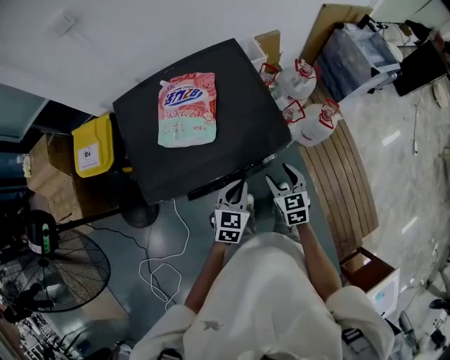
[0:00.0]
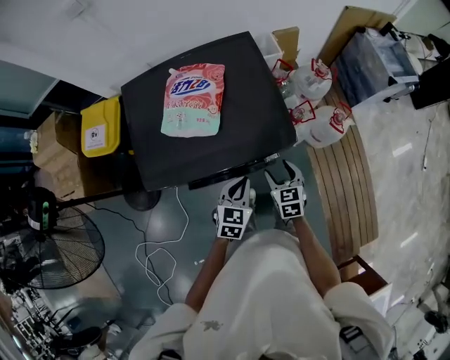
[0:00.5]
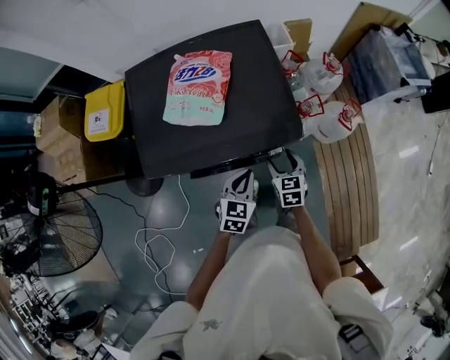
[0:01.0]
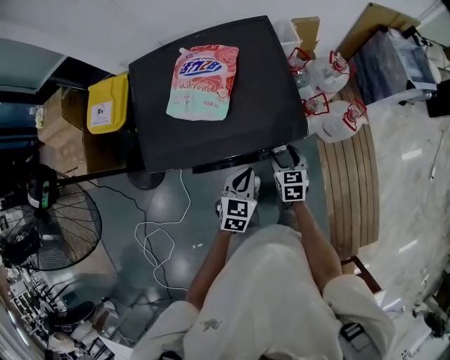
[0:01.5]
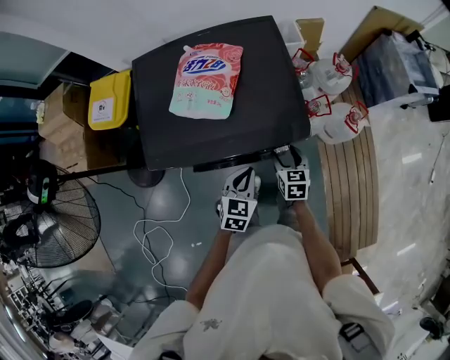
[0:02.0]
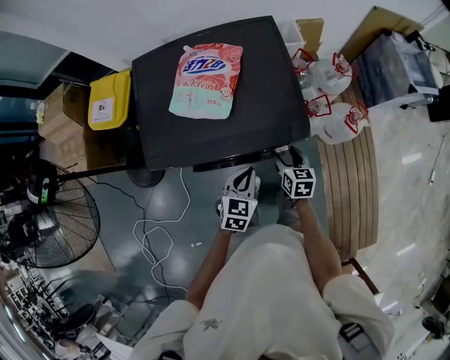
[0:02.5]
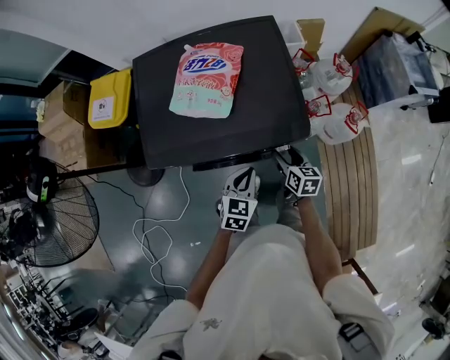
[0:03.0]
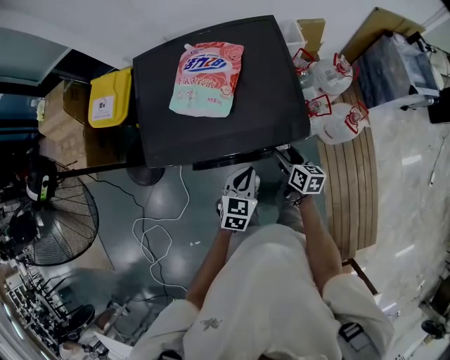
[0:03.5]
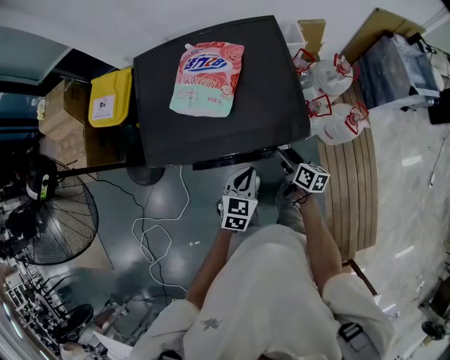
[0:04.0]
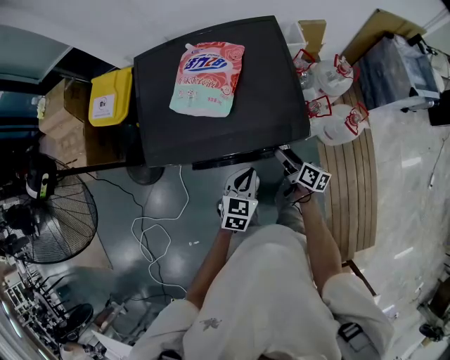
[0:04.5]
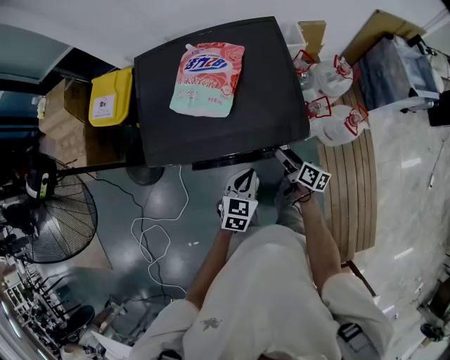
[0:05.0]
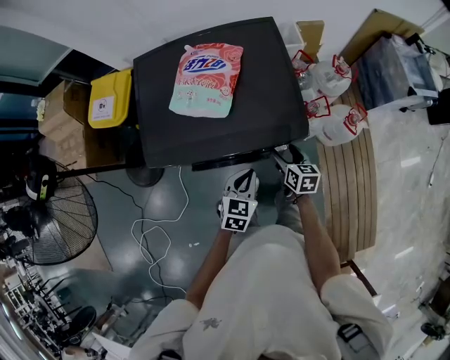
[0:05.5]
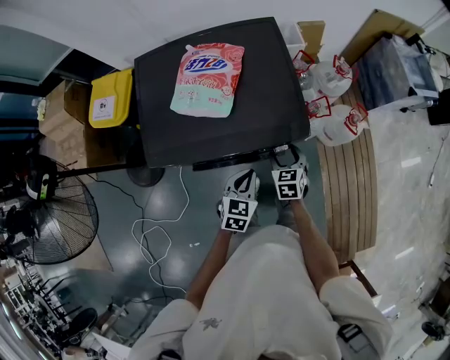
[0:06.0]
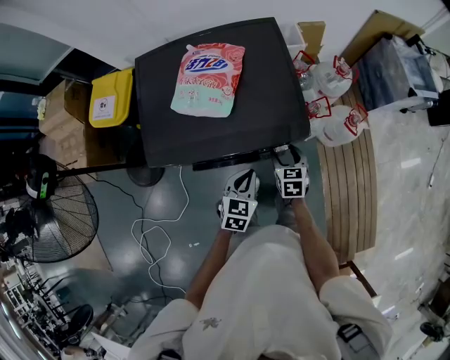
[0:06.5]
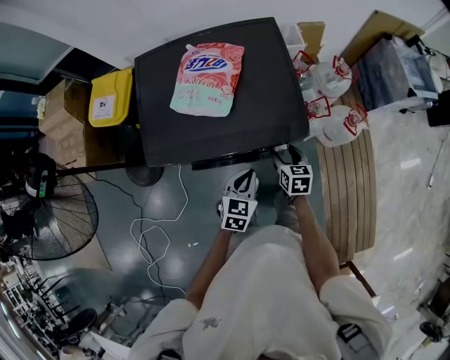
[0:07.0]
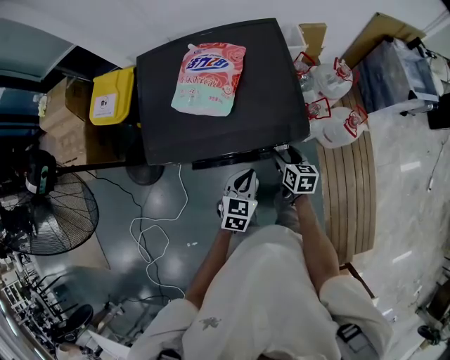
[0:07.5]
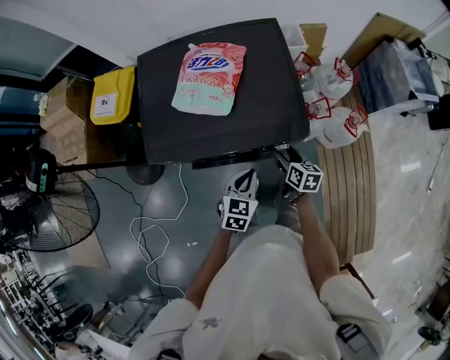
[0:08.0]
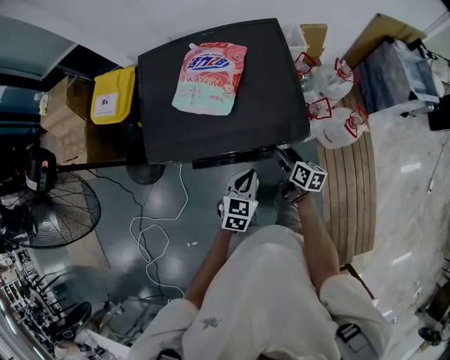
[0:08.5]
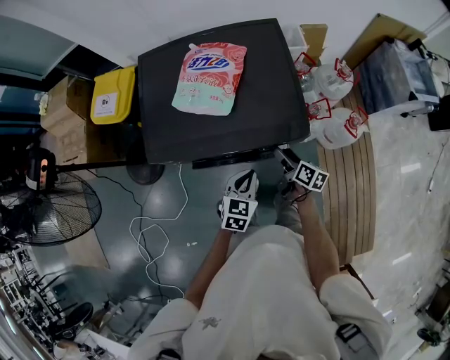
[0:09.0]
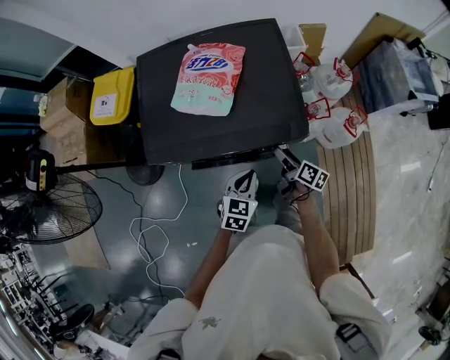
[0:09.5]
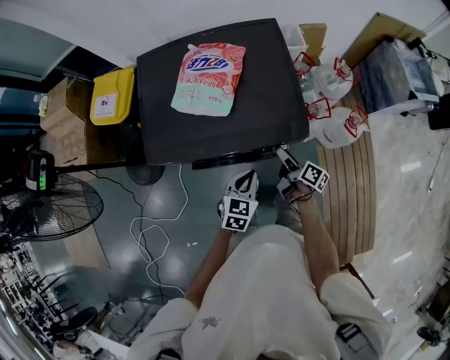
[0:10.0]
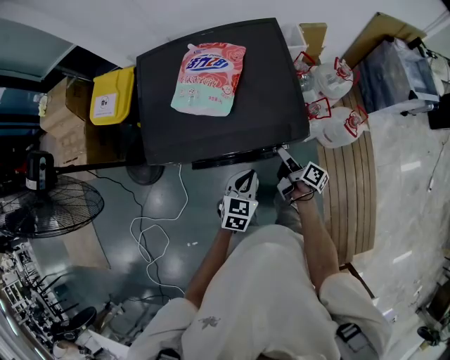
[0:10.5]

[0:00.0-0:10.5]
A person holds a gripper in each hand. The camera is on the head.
0:00.0 to 0:02.0: The right gripper shifts roughly 10 cm downward.
0:02.0 to 0:04.0: The right gripper swivels approximately 40 degrees.
0:04.0 to 0:06.5: The right gripper turns by approximately 40 degrees.
0:06.5 to 0:08.5: The right gripper changes its angle by roughly 40 degrees.
0:08.5 to 0:10.5: The right gripper rotates some 30 degrees.

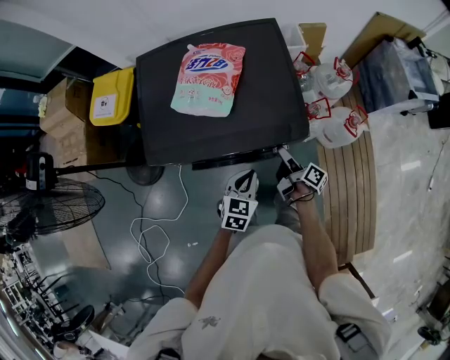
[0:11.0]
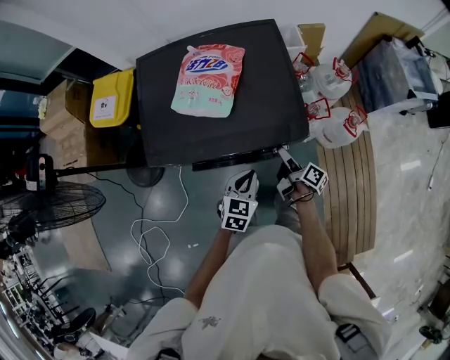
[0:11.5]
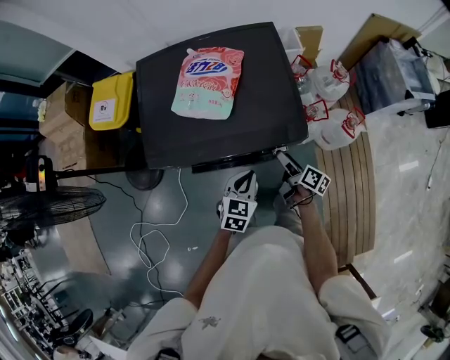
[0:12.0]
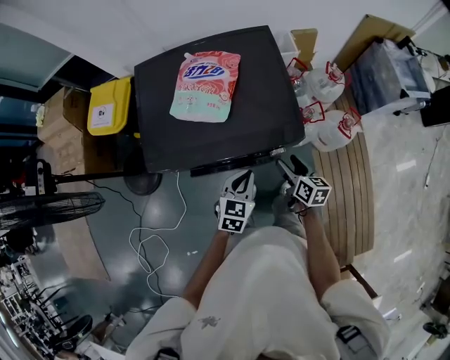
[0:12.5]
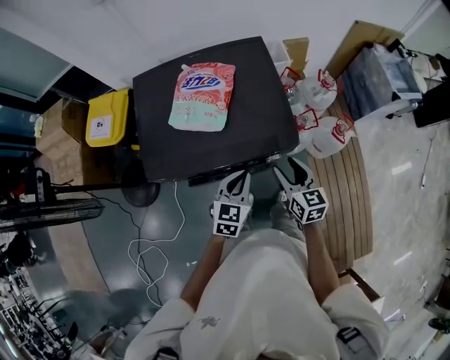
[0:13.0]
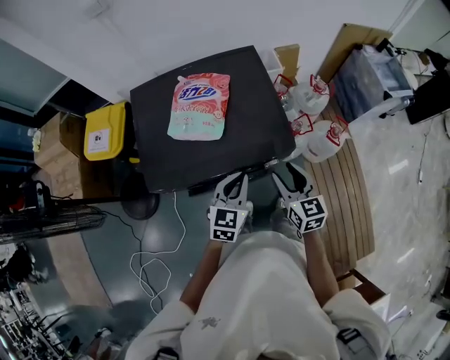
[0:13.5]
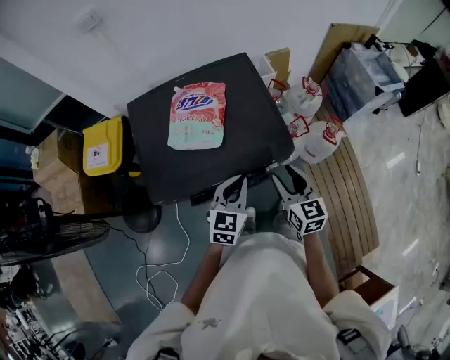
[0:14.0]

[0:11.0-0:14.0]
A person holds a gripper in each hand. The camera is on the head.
0:11.0 to 0:12.5: The right gripper moves roughly 5 cm, and rolls counterclockwise, seen from behind, by some 50 degrees.
0:12.5 to 0:14.0: The right gripper travels upward by about 15 cm, and turns by approximately 30 degrees. Meanwhile the left gripper moves upward, some 10 cm.

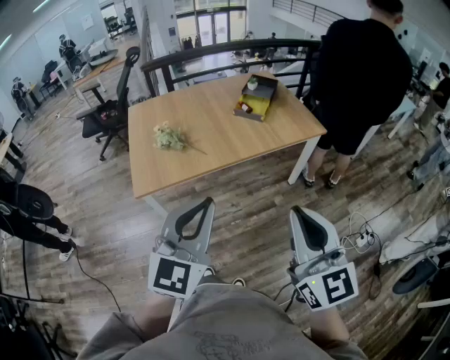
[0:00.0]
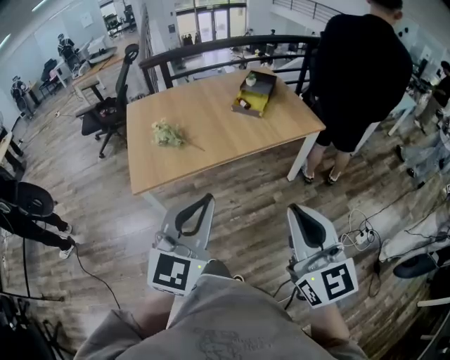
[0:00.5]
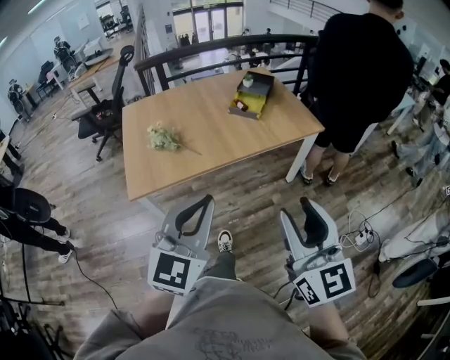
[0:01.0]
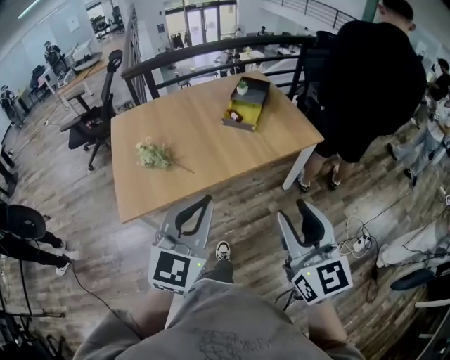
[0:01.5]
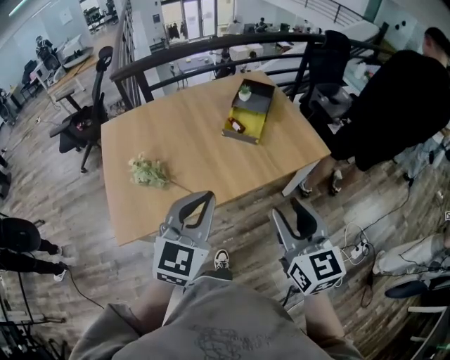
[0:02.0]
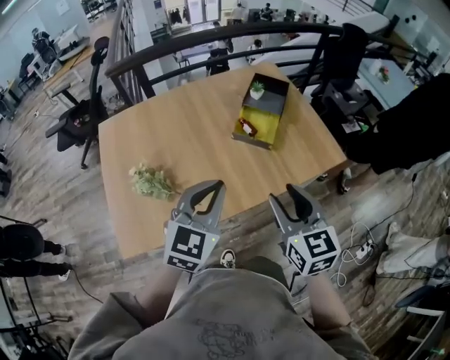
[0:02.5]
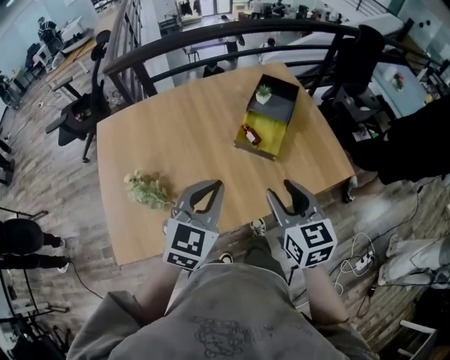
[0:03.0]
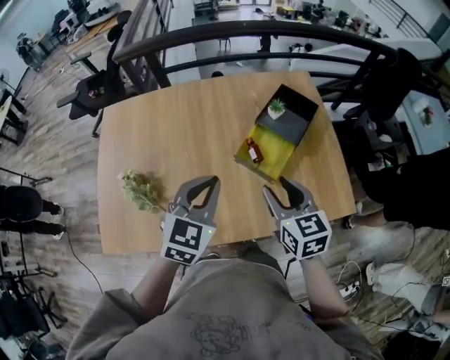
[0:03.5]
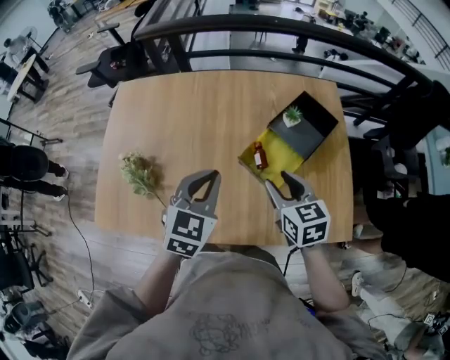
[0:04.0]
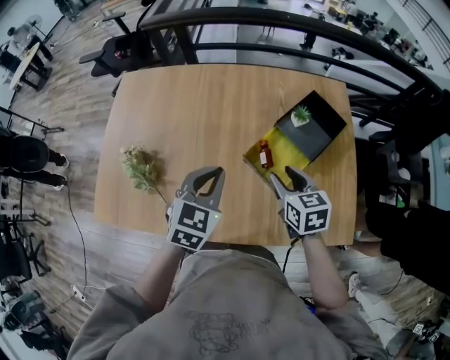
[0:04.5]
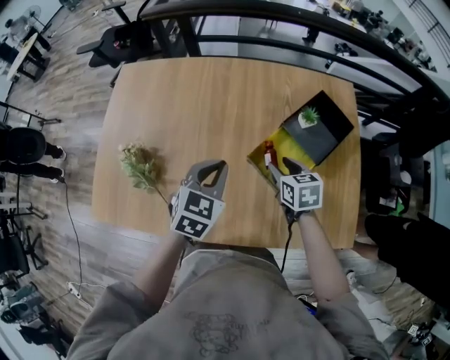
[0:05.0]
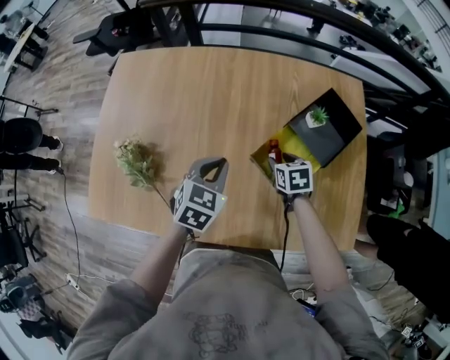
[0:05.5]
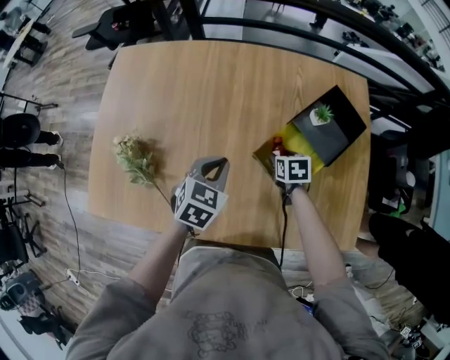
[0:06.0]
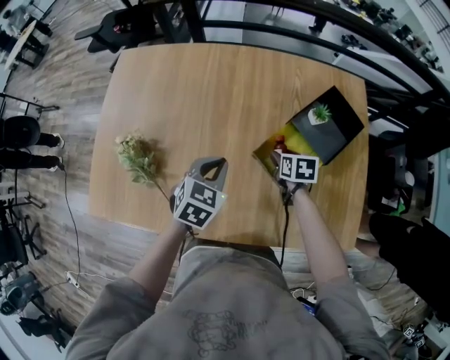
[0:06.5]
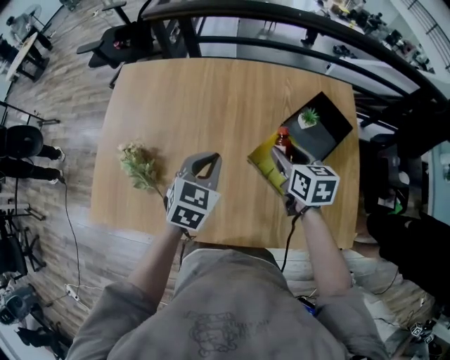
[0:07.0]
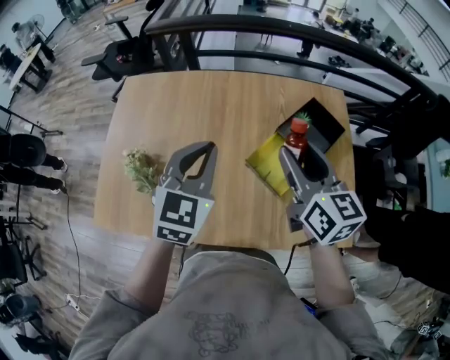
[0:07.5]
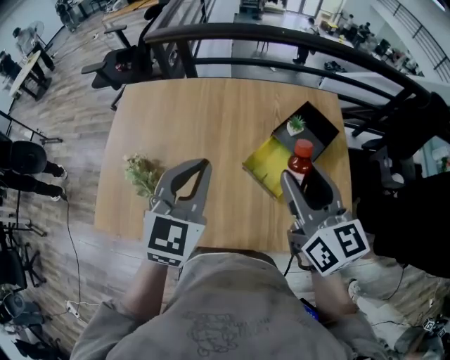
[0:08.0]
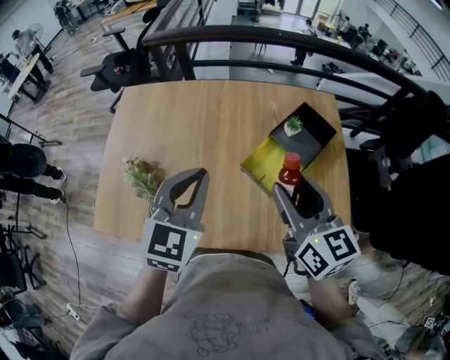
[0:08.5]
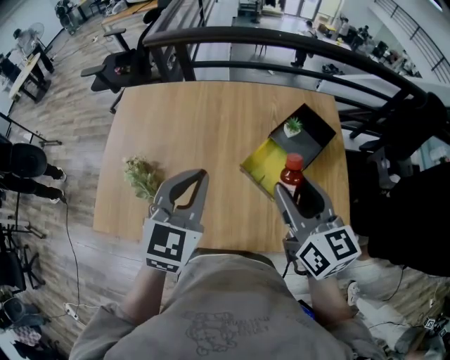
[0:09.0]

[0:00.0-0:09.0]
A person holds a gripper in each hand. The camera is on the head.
0:00.0 to 0:02.0: Both grippers travel together forward, approximately 30 cm. The right gripper opens up.
0:02.0 to 0:04.5: The left gripper moves approximately 40 cm, and swivels roughly 30 degrees; the right gripper changes place by about 50 cm, and swivels about 40 degrees.
0:04.5 to 0:07.0: The left gripper shifts about 5 cm forward. The right gripper travels forward by about 10 cm, and travels downward and back again, approximately 20 cm each way.
0:07.0 to 0:09.0: Both grippers move upward and backward, roughly 20 cm. The right gripper swivels some 30 degrees.

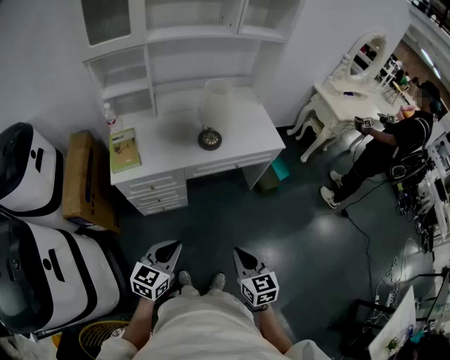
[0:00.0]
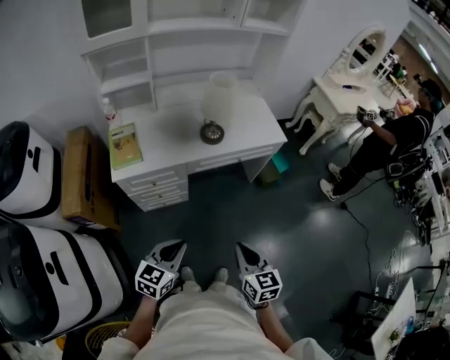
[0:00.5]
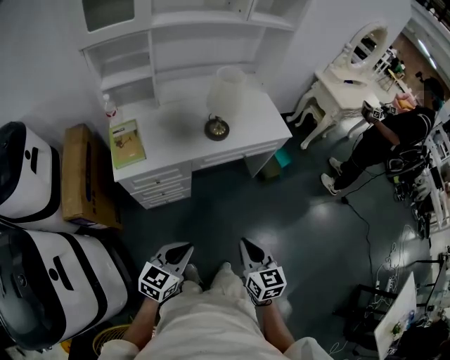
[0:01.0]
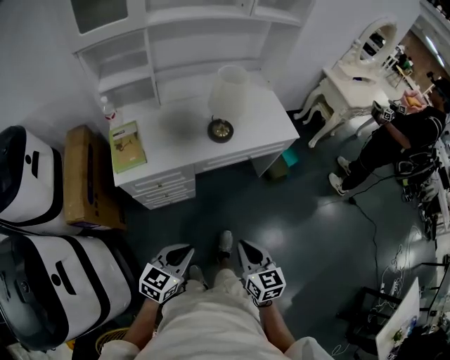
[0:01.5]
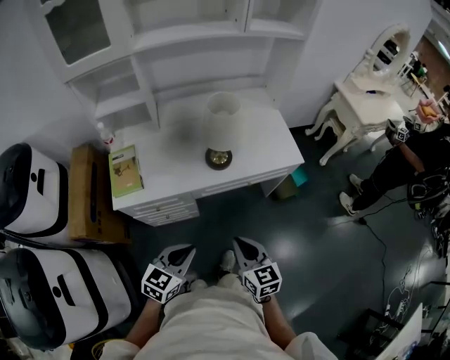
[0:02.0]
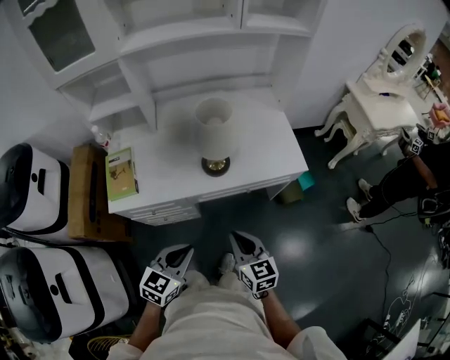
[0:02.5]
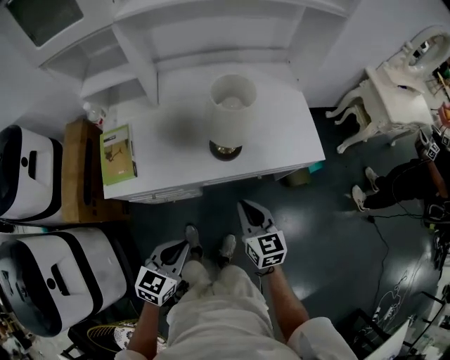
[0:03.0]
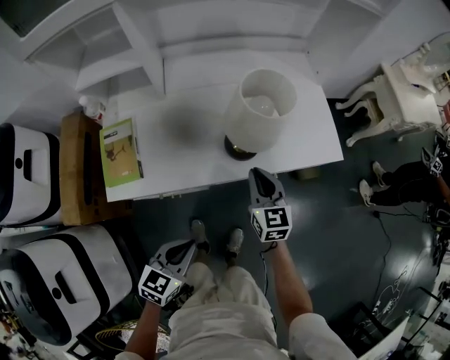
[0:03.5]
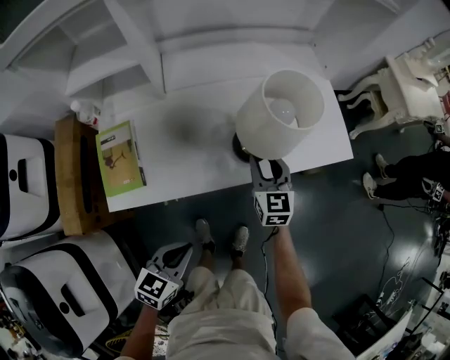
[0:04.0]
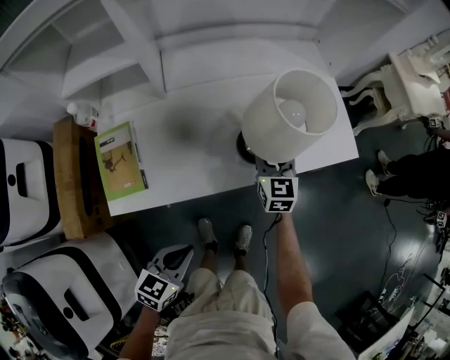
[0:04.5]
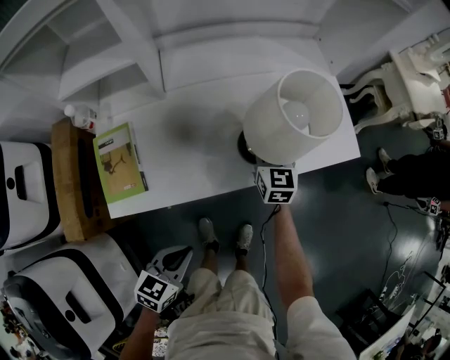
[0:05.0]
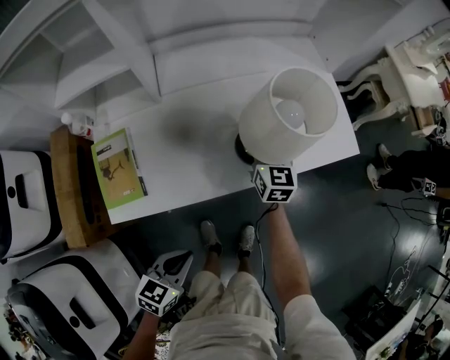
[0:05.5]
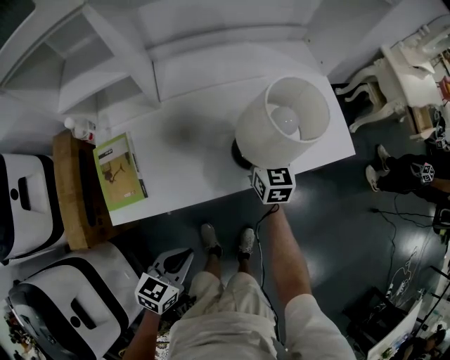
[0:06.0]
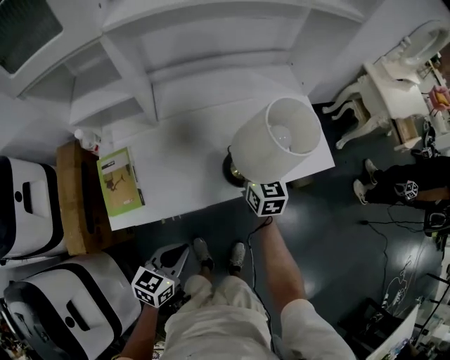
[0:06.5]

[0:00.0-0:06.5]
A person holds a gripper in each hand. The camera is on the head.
0:00.0 to 0:02.0: The grippers both shift forward by approximately 20 cm.
0:02.0 to 0:04.5: The left gripper heads downward, to the left and forward, covering roughly 20 cm. Meanwhile the right gripper moves forward, about 40 cm, and opens.
0:04.5 to 0:06.5: The left gripper ends up about 5 cm from where it was. Meanwhile the right gripper heads upward, covering some 5 cm, and closes up.
